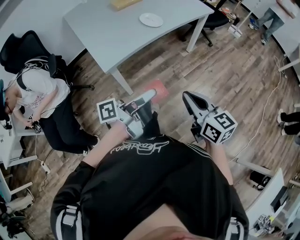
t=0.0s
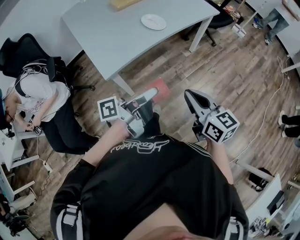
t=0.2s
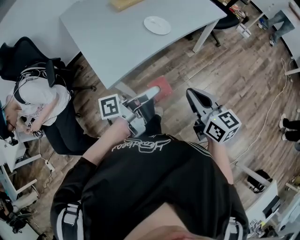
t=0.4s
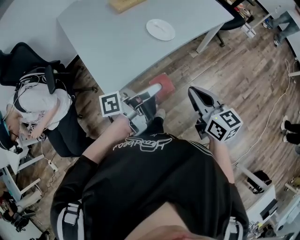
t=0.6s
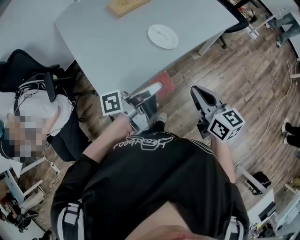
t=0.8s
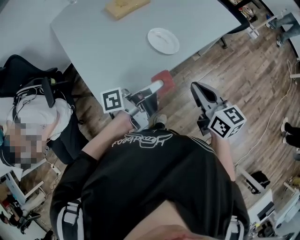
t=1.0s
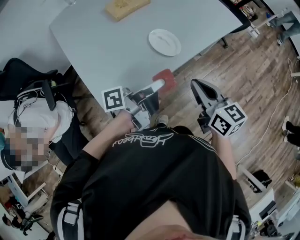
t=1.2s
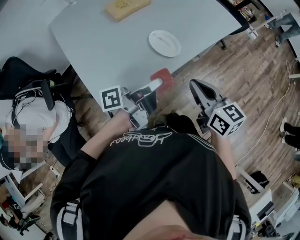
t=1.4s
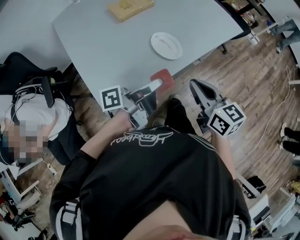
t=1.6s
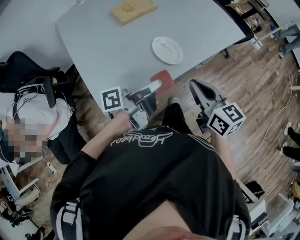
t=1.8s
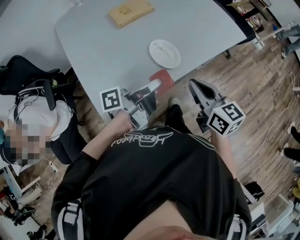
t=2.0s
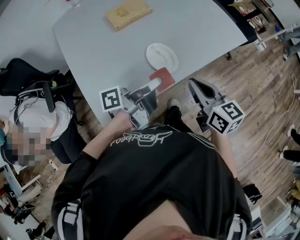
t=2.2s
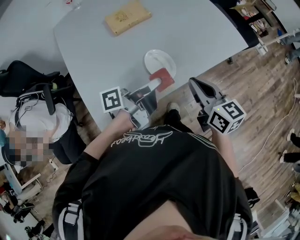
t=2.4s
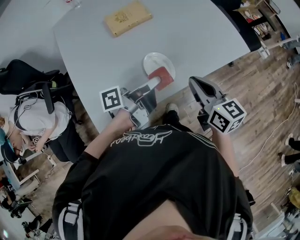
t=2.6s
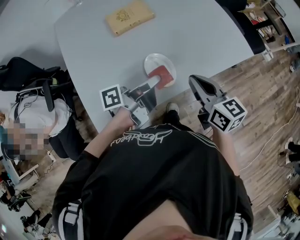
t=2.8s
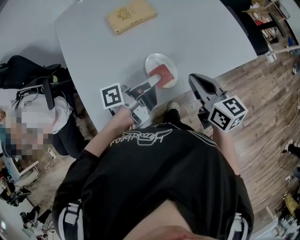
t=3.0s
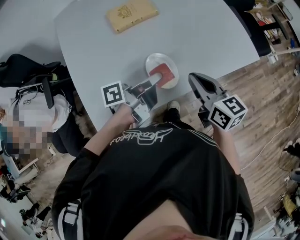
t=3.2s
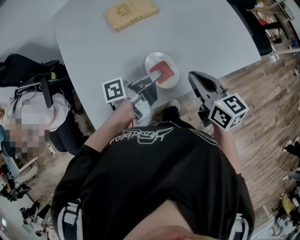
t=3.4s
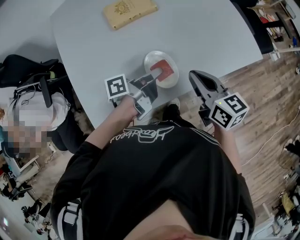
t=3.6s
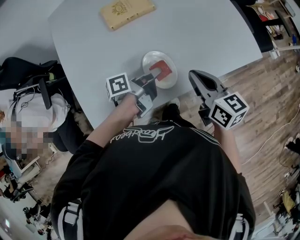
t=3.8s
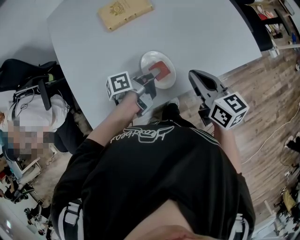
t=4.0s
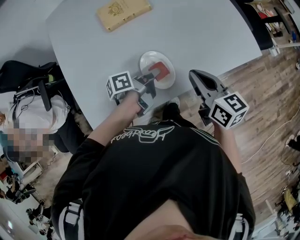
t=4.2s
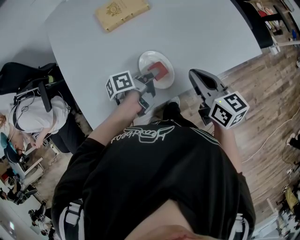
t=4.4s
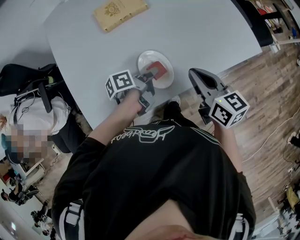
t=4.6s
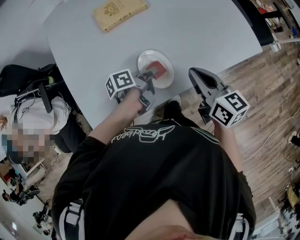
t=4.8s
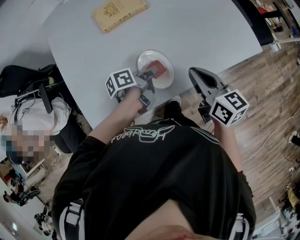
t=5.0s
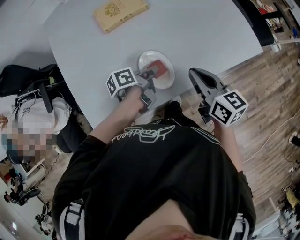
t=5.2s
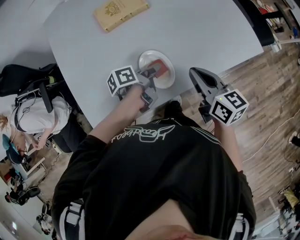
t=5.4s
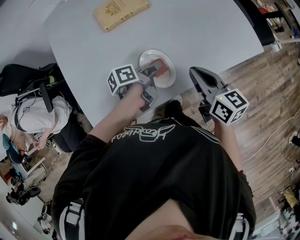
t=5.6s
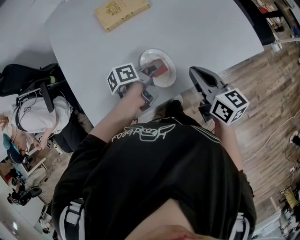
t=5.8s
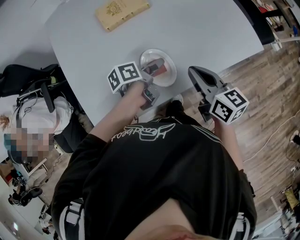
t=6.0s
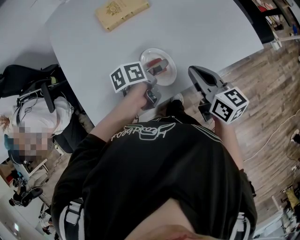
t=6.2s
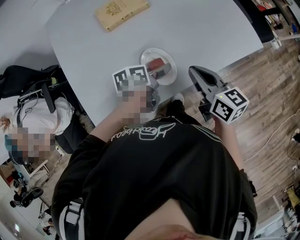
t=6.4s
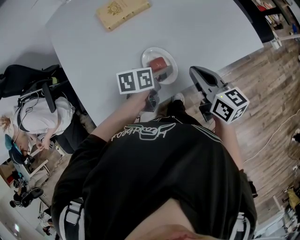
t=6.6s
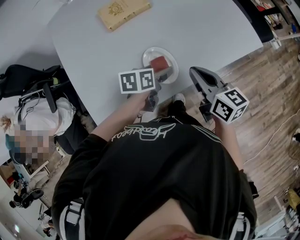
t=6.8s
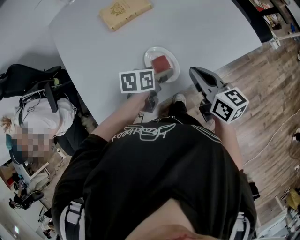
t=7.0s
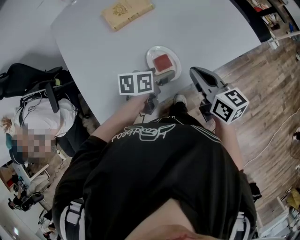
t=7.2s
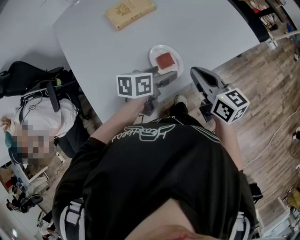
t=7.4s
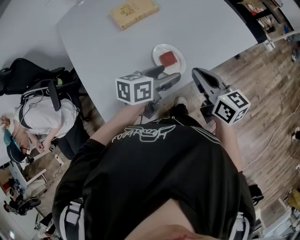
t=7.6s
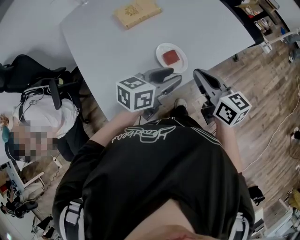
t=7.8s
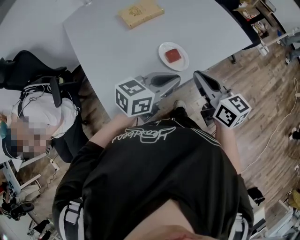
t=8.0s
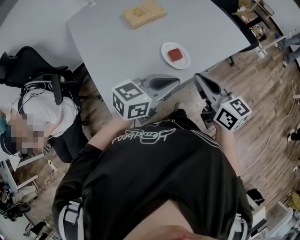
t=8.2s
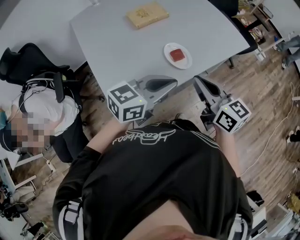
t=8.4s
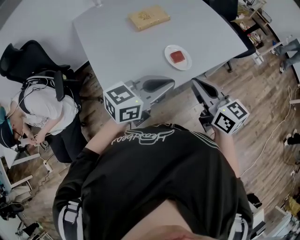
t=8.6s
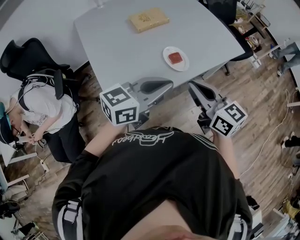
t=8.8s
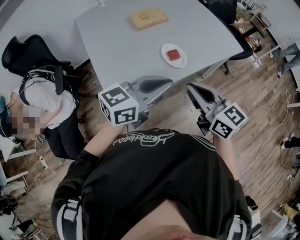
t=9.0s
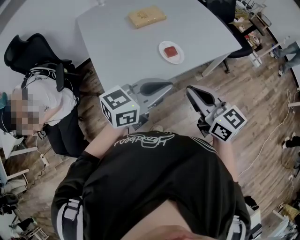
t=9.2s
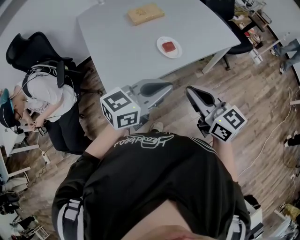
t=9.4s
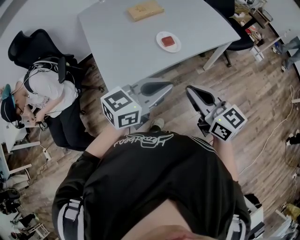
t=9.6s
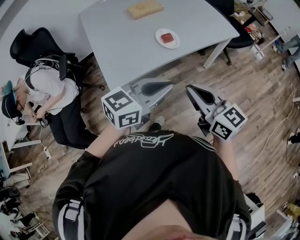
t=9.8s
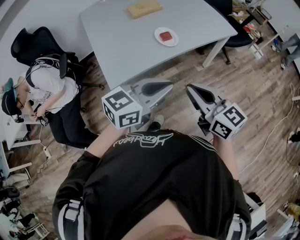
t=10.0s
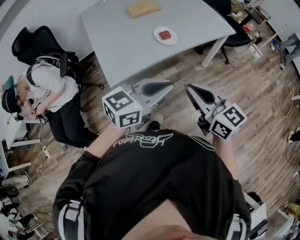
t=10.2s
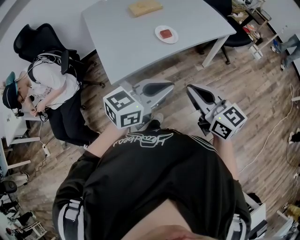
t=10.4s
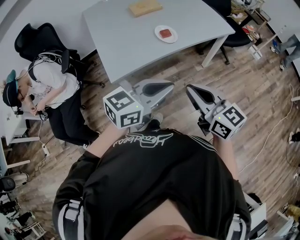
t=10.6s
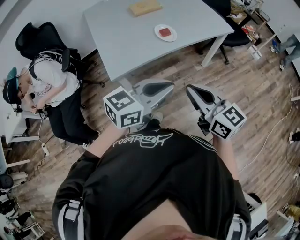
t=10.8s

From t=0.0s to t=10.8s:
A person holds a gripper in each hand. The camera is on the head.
From t=0.0s to t=1.6s: The grippers both shift forward by approximately 30 cm.
From t=1.6s to t=3.0s: The grippers both shift forward by about 20 cm.
From t=3.0s to t=4.6s: The left gripper goes about 15 cm downward, and swivels approximately 30 degrees, while the right gripper changes place by approximately 5 cm.
From t=4.6s to t=6.2s: The left gripper opens.
From t=6.2s to t=7.8s: The left gripper heads upward and backward, covering approximately 20 cm, rolls clockwise, seen from behind, by about 50 degrees, and closes. Meanwhile the right gripper shifts approximately 10 cm backward and upward.
From t=7.8s to t=9.2s: The grippers both shift backward and upward by approximately 20 cm. The left gripper closes.
From t=9.2s to t=10.8s: Both grippers travel together backward and to the right, about 15 cm.

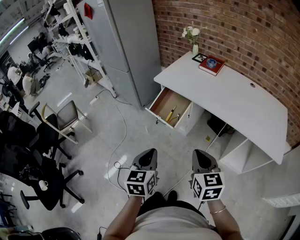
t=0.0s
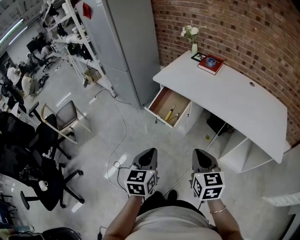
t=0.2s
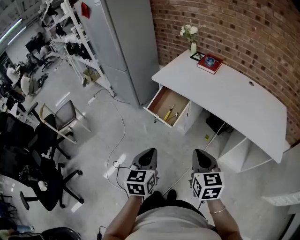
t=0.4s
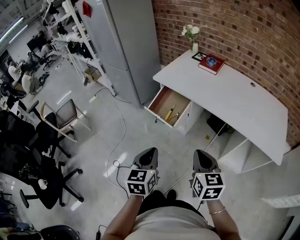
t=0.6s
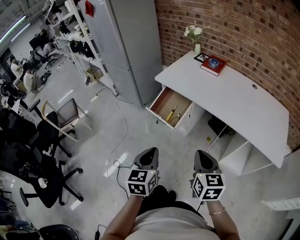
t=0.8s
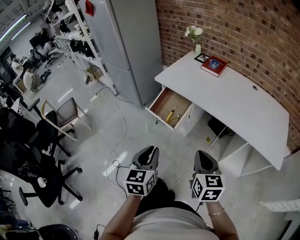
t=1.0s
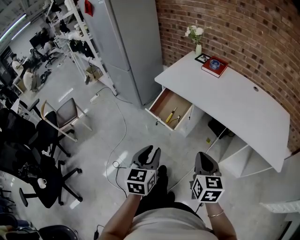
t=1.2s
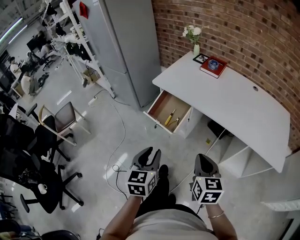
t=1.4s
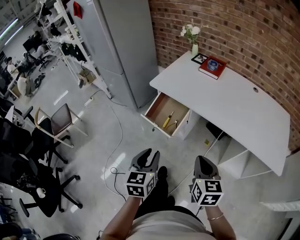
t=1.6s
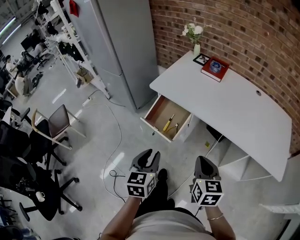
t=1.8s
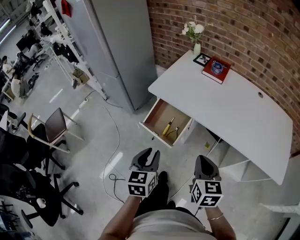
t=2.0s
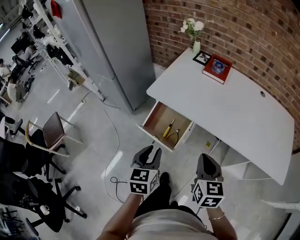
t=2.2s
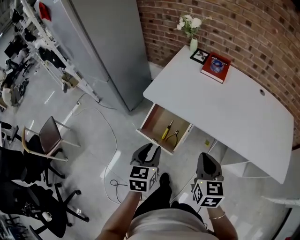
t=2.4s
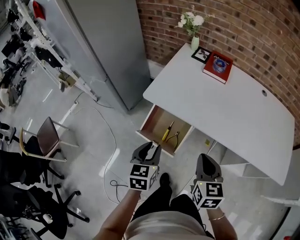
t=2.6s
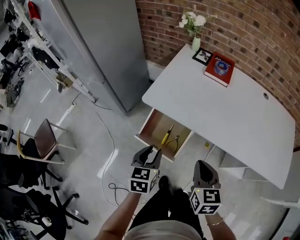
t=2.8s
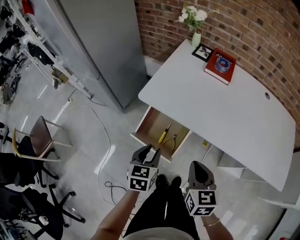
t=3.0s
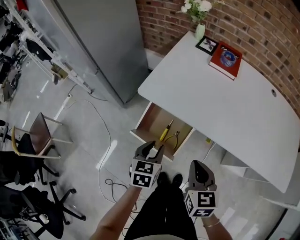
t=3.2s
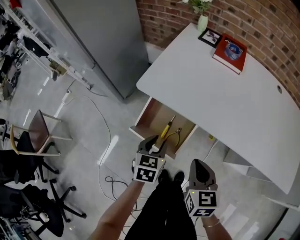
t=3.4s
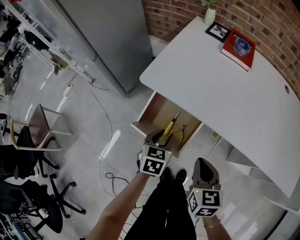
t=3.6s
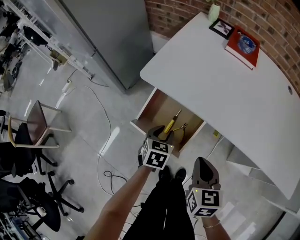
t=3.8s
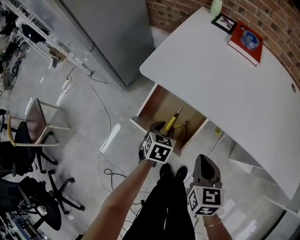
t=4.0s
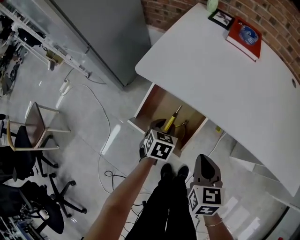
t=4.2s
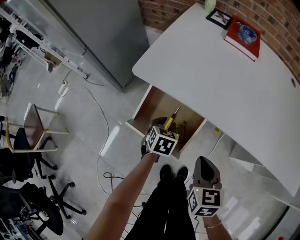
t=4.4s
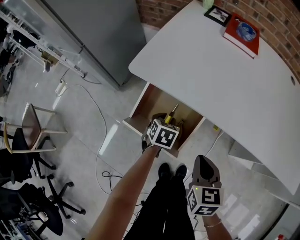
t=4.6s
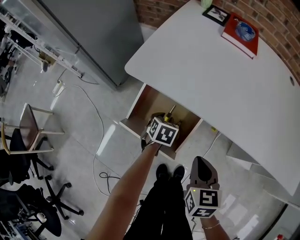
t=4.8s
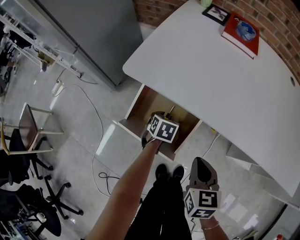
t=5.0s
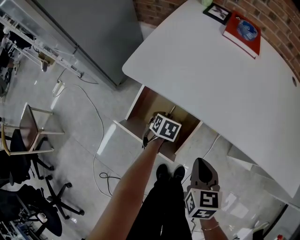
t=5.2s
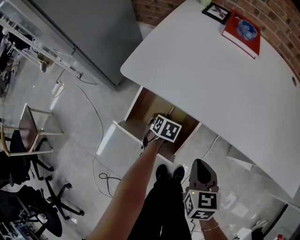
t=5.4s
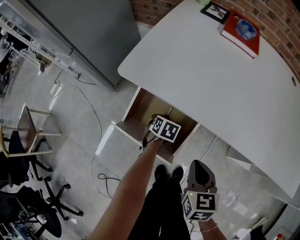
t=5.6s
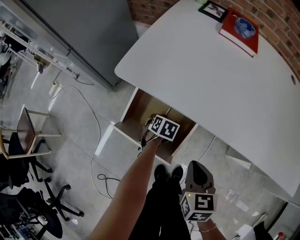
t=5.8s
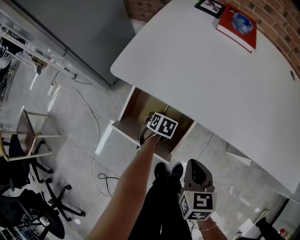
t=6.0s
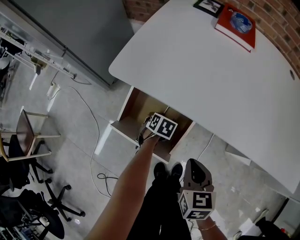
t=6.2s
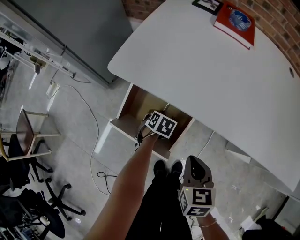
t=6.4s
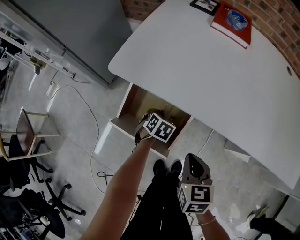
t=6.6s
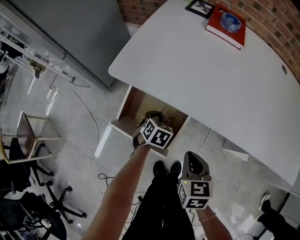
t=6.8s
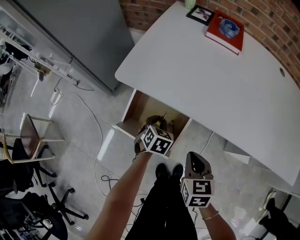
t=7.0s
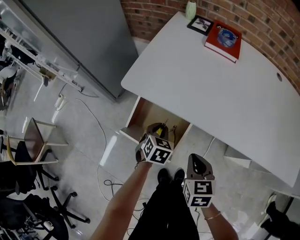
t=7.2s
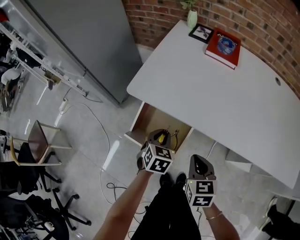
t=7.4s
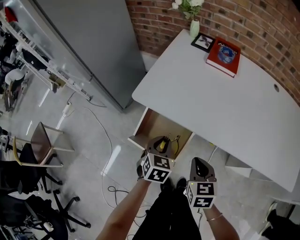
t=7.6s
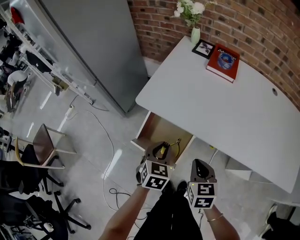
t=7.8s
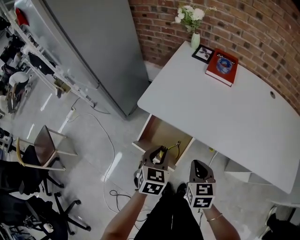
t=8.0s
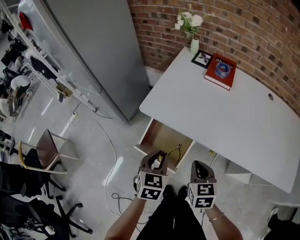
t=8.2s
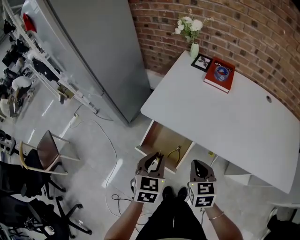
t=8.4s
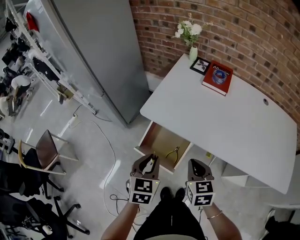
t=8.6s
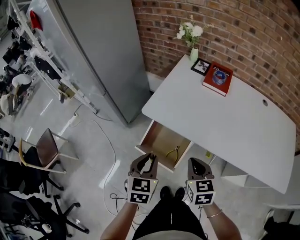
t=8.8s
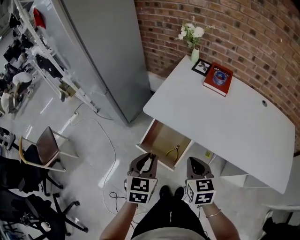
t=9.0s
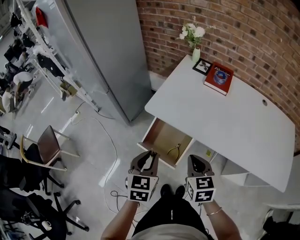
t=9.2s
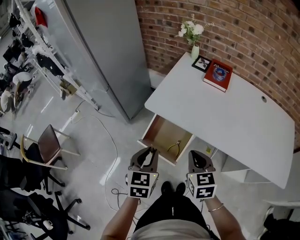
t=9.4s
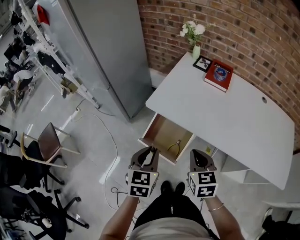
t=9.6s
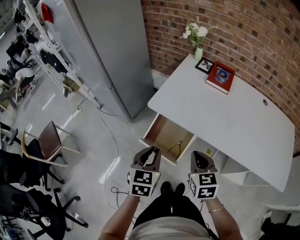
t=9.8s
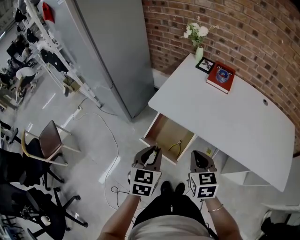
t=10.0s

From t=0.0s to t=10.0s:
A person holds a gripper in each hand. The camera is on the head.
From t=0.0s to t=1.4s: The right gripper shifts by roughly 5 cm; the left gripper travels forward by about 5 cm, and opens its fingers.
From t=1.4s to t=2.8s: Both grippers move forward, some 25 cm.
From t=2.8s to t=4.2s: The left gripper travels downward and forward by approximately 25 cm, and swivels about 20 degrees. The right gripper travels downward by some 15 cm.
From t=4.2s to t=5.8s: The left gripper travels downward and forward by about 15 cm.
From t=5.8s to t=7.2s: The left gripper goes approximately 15 cm upward, and changes its angle by roughly 20 degrees.
From t=7.2s to t=8.6s: The right gripper goes some 15 cm upward. Meanwhile the left gripper is displaced upward and backward by about 25 cm.
From t=8.6s to t=10.0s: The right gripper shifts by approximately 5 cm. Meanwhile the left gripper ends up some 5 cm from where it was.

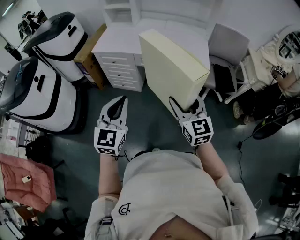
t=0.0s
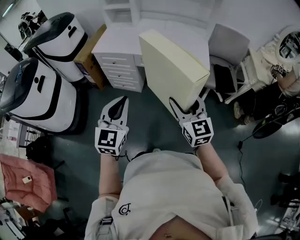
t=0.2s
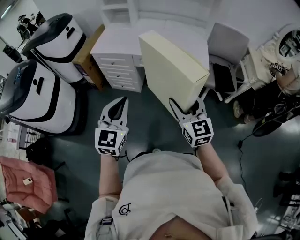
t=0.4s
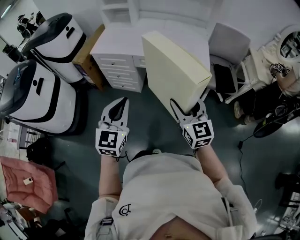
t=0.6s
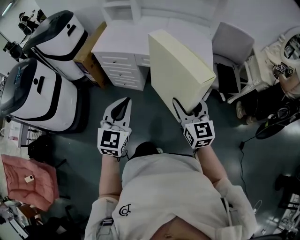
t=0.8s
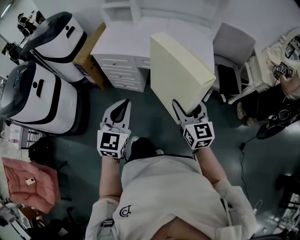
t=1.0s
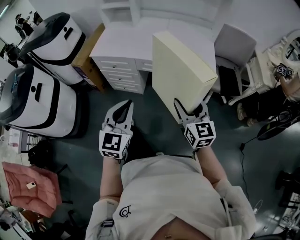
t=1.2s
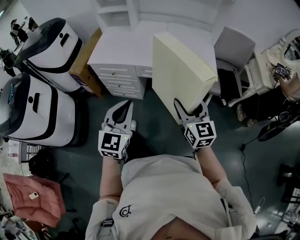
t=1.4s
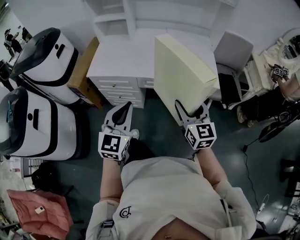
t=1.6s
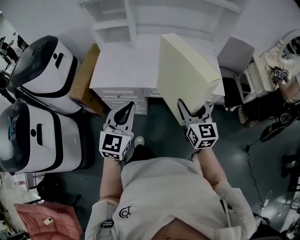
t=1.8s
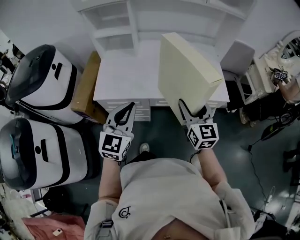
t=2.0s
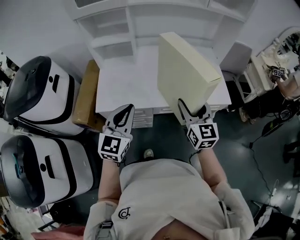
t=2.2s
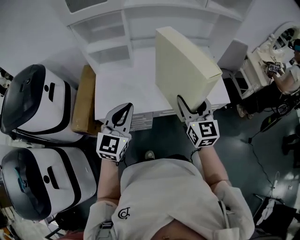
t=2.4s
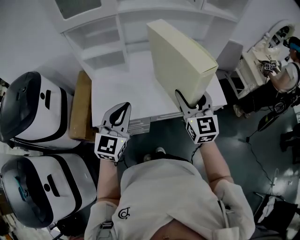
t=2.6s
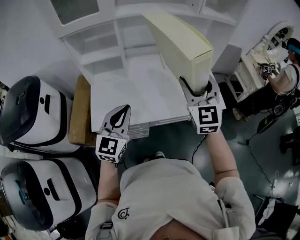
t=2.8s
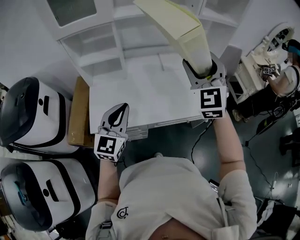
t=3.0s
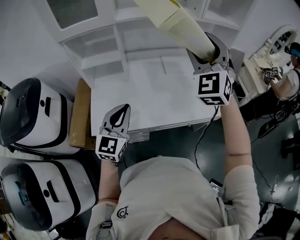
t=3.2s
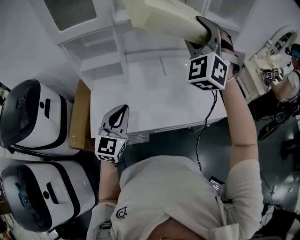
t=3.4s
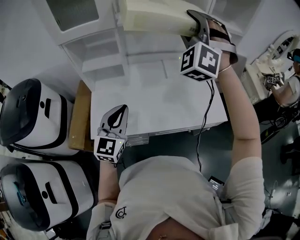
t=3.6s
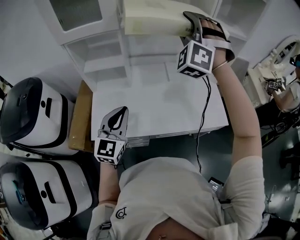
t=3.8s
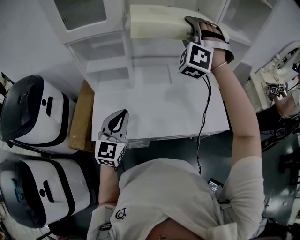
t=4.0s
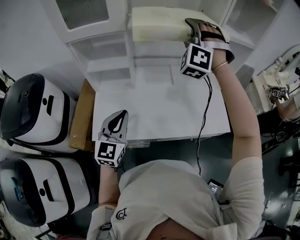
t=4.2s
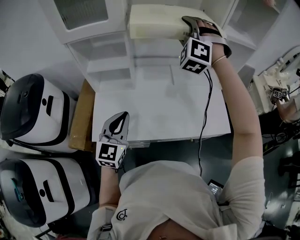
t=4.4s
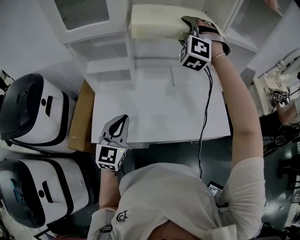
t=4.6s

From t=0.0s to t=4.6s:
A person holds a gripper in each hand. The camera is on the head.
From t=0.0s to t=1.6s: The two grippers go roughly 20 cm forward.
From t=1.6s to t=3.0s: The right gripper heads forward, upward and to the left, covering roughly 40 cm, and swivels approximately 40 degrees, while the left gripper heads forward and to the left, covering some 30 cm.
From t=3.0s to t=4.6s: The right gripper shifts approximately 25 cm forward and to the left, and rolls counterclockwise, seen from behind, by some 50 degrees. The left gripper shifts about 5 cm forward.
